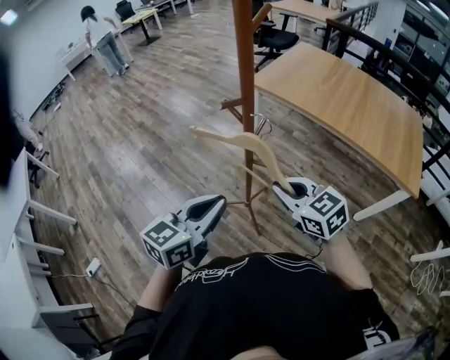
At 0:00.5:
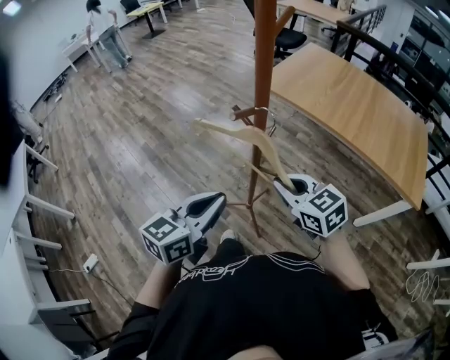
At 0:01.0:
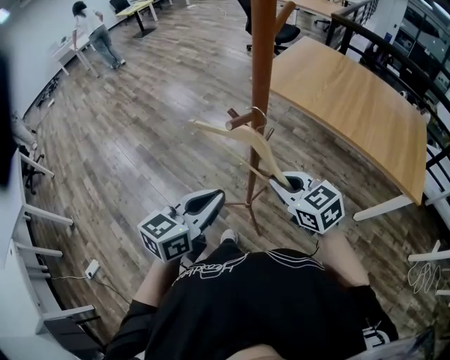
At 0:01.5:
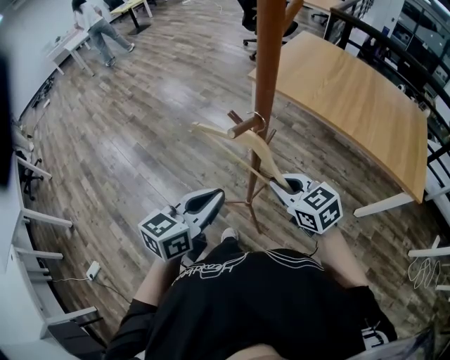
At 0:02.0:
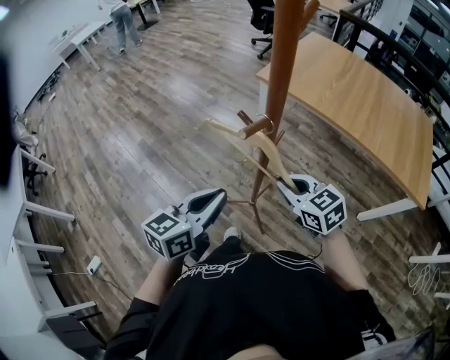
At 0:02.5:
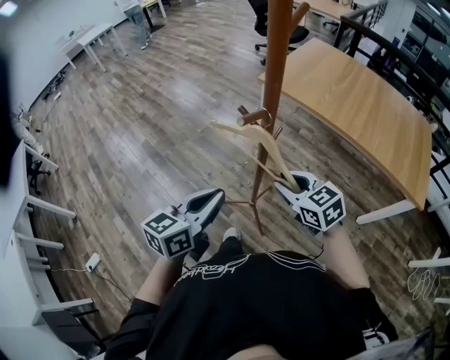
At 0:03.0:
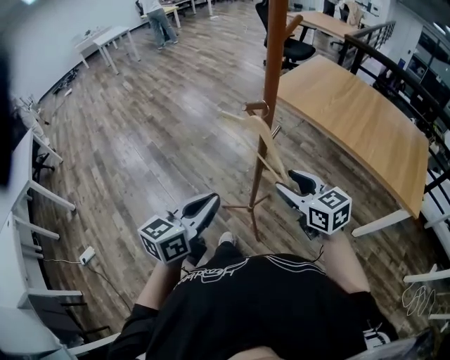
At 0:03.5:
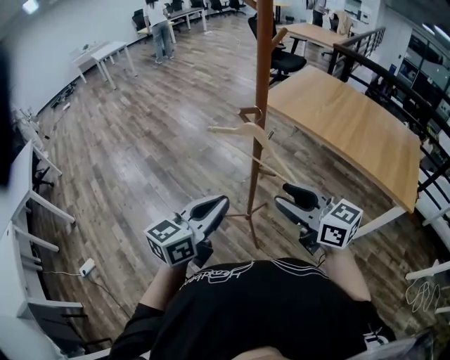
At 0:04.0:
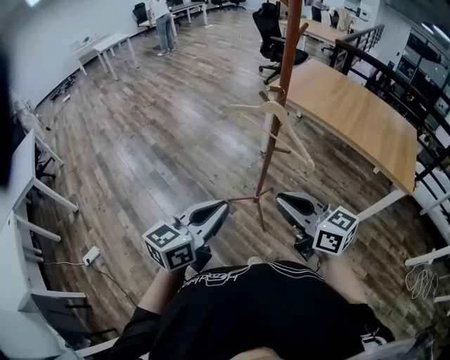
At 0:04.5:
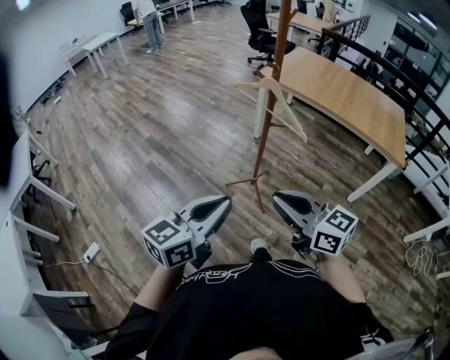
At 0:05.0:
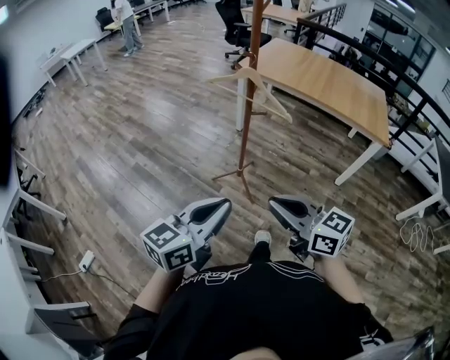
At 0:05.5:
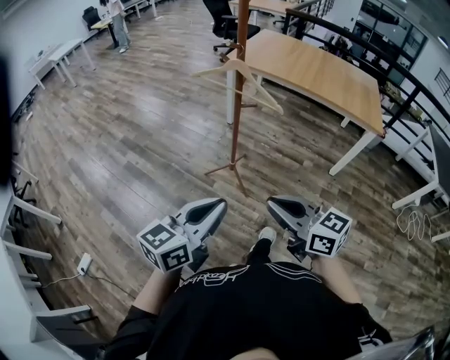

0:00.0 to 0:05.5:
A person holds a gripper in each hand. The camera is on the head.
0:00.0 to 0:02.0: The right gripper travels forward and downward by approximately 10 cm, while the left gripper goes some 10 cm forward.
0:02.0 to 0:03.5: Both grippers move backward and upward, about 15 cm. The right gripper changes its angle by roughly 30 degrees, and opens.
0:03.5 to 0:05.5: The grippers both shift backward by about 25 cm. The right gripper closes its fingers.

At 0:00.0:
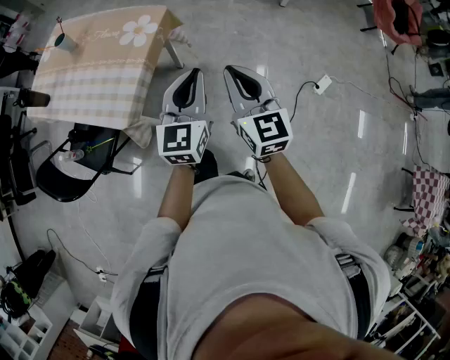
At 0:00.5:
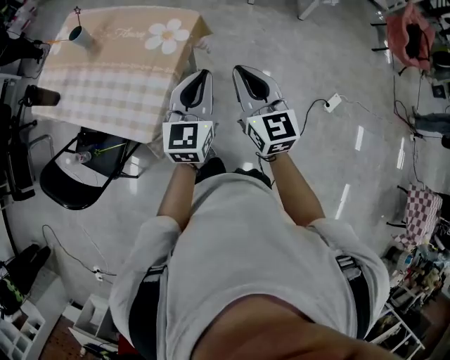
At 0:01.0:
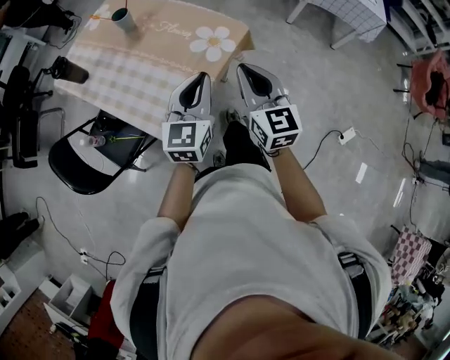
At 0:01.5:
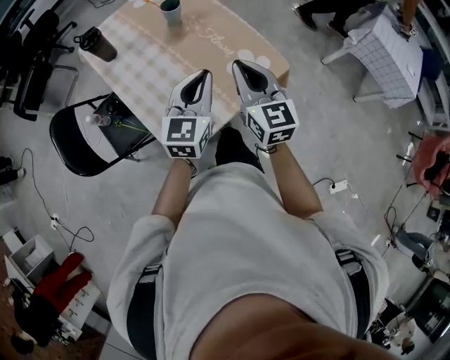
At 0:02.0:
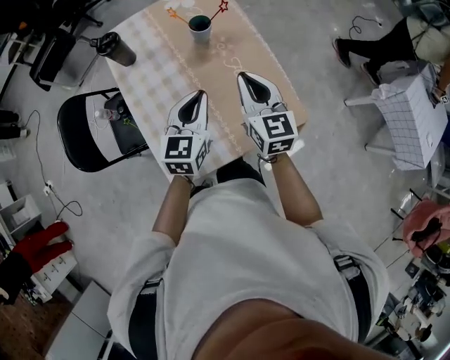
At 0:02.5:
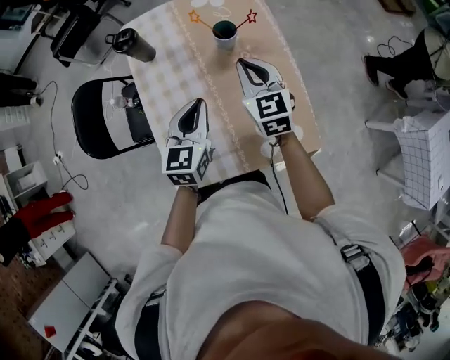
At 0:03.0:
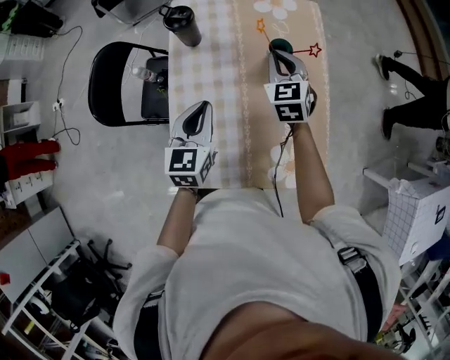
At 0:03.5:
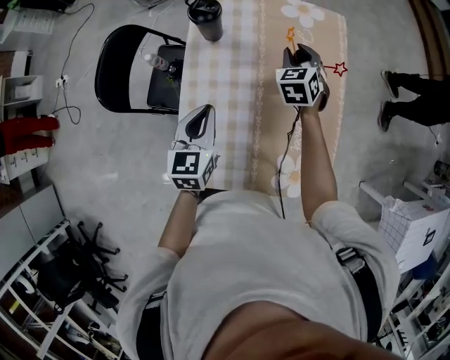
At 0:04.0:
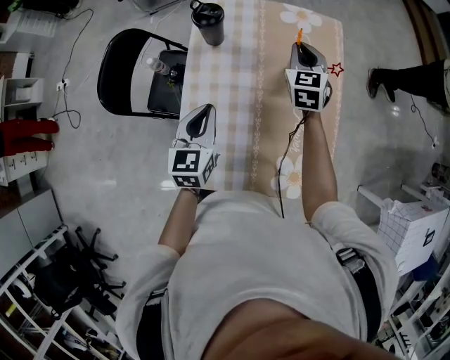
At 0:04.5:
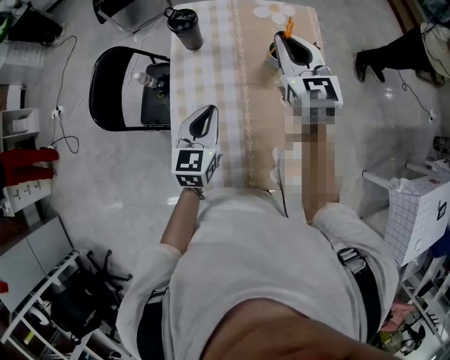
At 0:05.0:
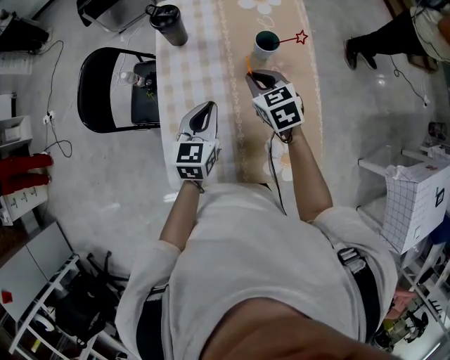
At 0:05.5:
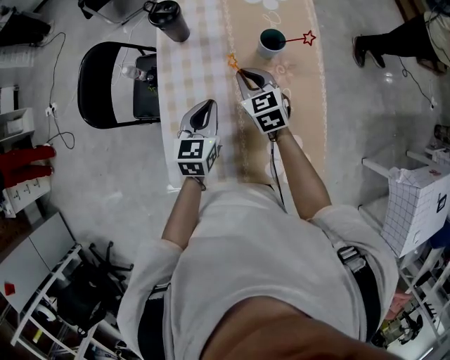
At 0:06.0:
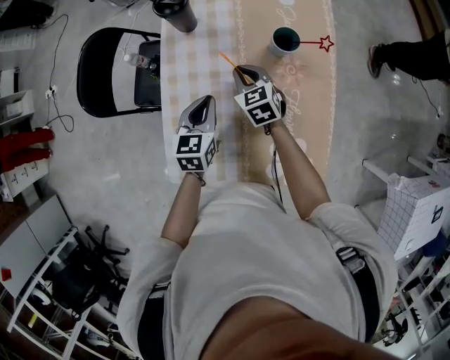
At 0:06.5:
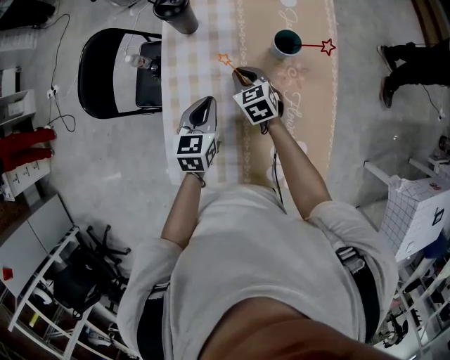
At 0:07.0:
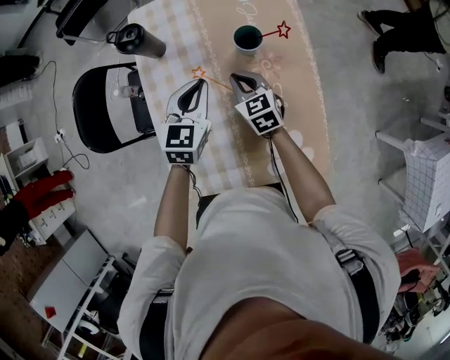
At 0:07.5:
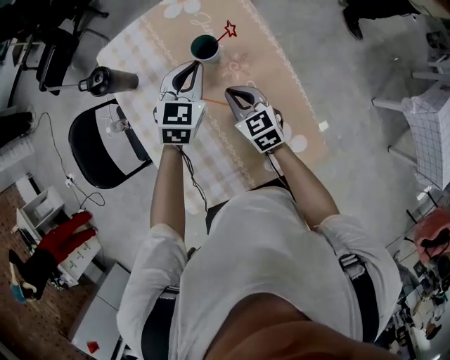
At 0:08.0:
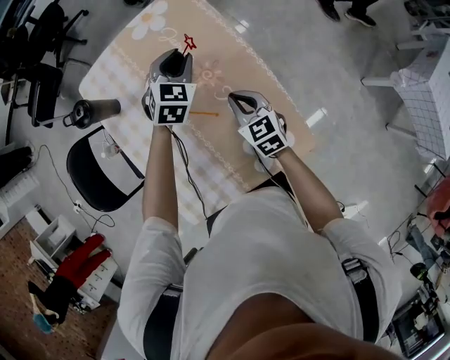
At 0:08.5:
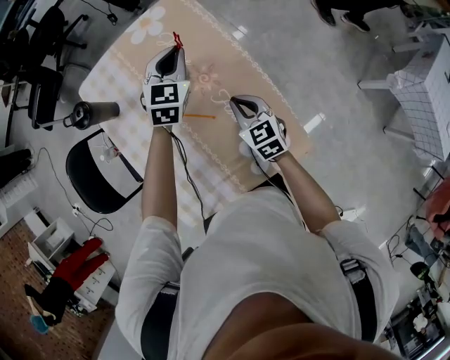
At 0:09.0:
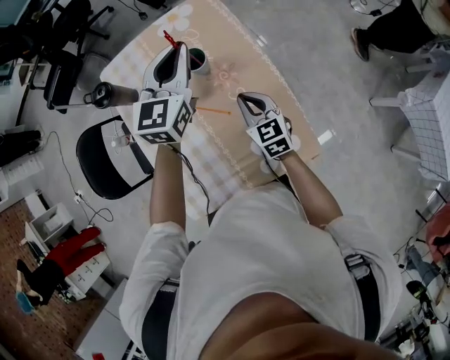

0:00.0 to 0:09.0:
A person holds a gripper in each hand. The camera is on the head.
0:00.0 to 0:02.0: Both grippers are carried roughly 60 cm. The left gripper turns by some 40 degrees. Meanwhile the right gripper turns by approximately 40 degrees.
0:02.0 to 0:04.5: The left gripper goes roughly 10 cm to the left and forward, and changes its angle by roughly 30 degrees, while the right gripper goes roughly 20 cm forward, turns by some 20 degrees, and opens, then closes once more.
0:04.5 to 0:07.0: The left gripper goes some 15 cm forward and to the right, while the right gripper travels downward by some 25 cm, and changes its angle by some 20 degrees.
0:07.0 to 0:09.0: The left gripper goes about 20 cm upward, to the right and forward, swivels approximately 20 degrees, and opens and closes again, while the right gripper travels to the right and backward by about 15 cm.

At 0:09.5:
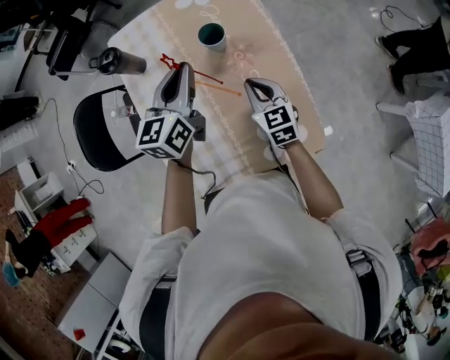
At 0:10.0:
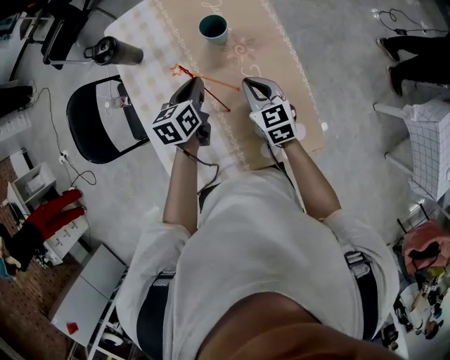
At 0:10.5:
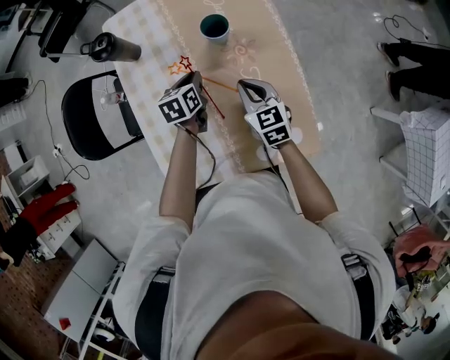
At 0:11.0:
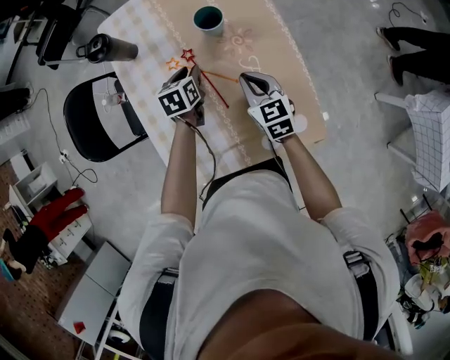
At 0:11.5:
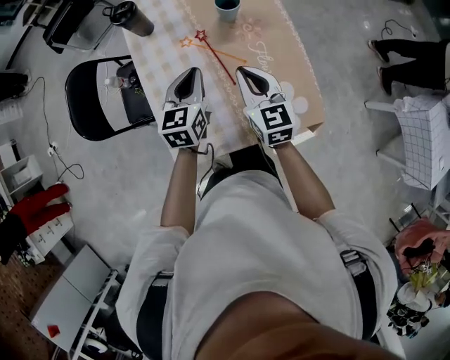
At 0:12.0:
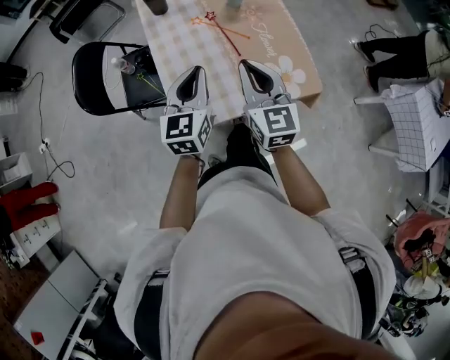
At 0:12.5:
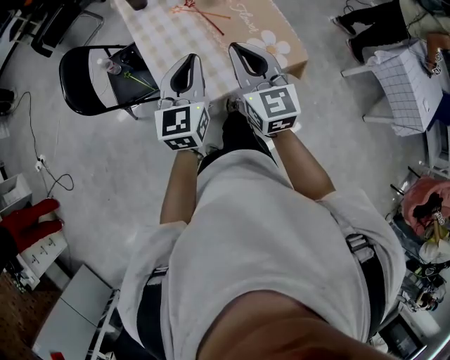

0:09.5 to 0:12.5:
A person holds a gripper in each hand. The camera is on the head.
0:09.5 to 0:11.0: The left gripper travels downward by some 25 cm, tilts its fingers about 40 degrees downward, and opens.
0:11.0 to 0:12.5: The right gripper heads backward, upward and to the left, covering some 40 cm, and swivels some 30 degrees. Meanwhile the left gripper heads backward and upward, covering some 40 cm, tips its fingers upward by some 40 degrees, and closes up.

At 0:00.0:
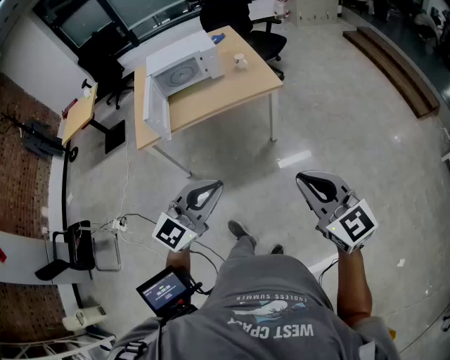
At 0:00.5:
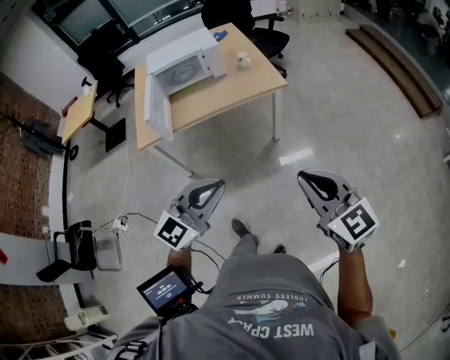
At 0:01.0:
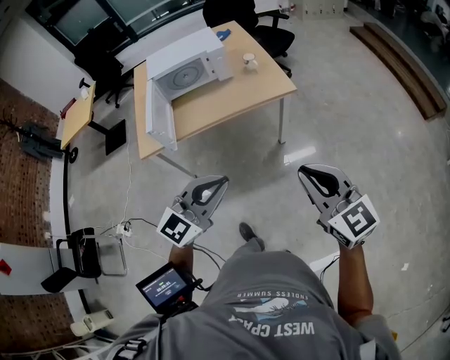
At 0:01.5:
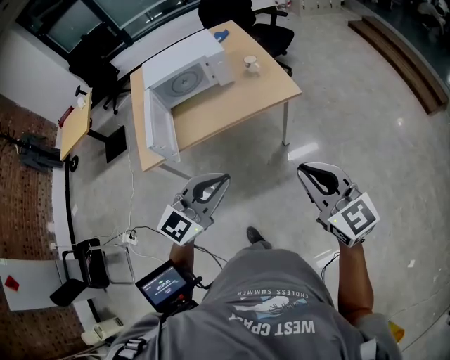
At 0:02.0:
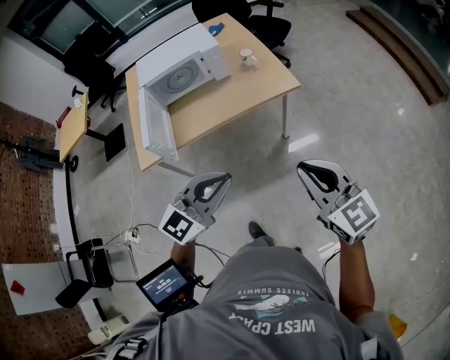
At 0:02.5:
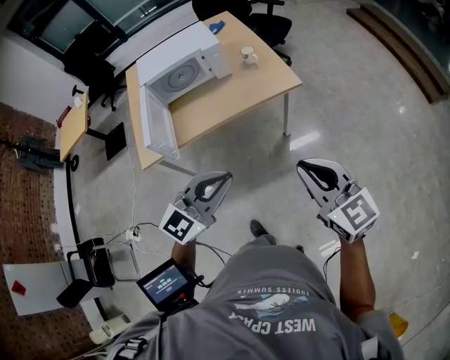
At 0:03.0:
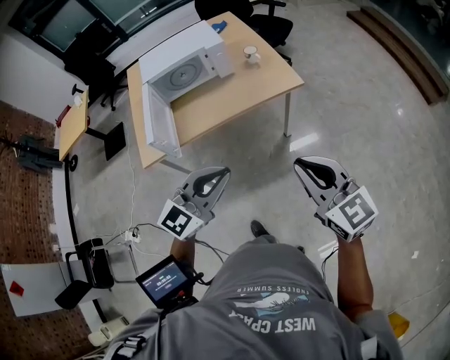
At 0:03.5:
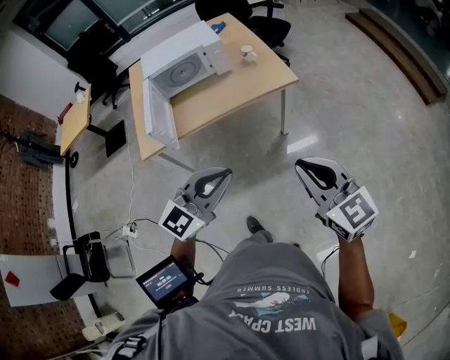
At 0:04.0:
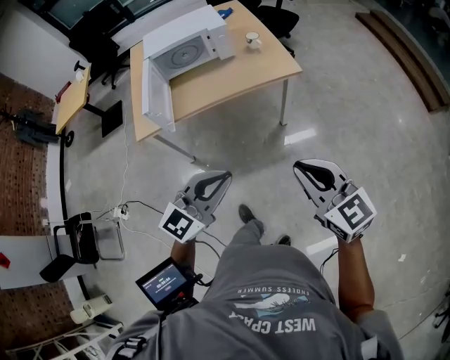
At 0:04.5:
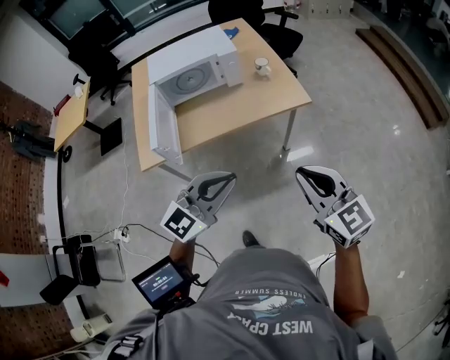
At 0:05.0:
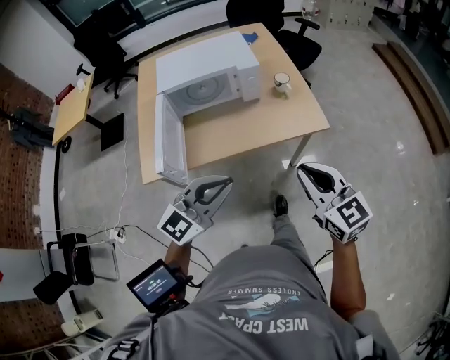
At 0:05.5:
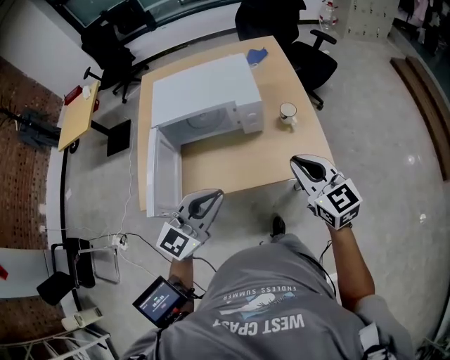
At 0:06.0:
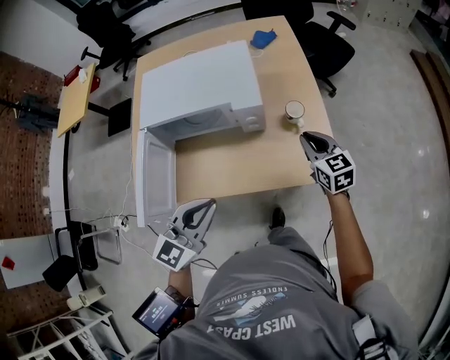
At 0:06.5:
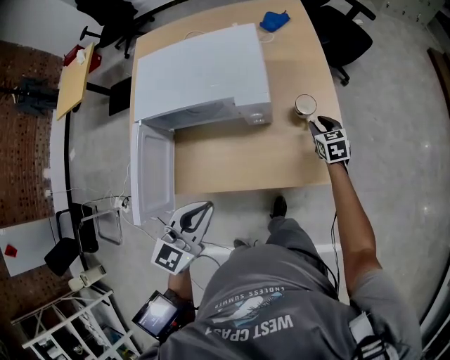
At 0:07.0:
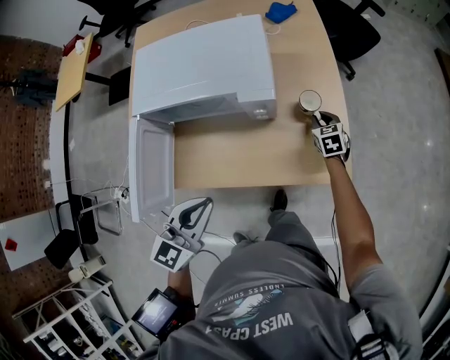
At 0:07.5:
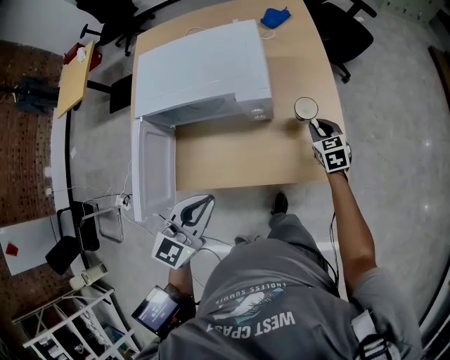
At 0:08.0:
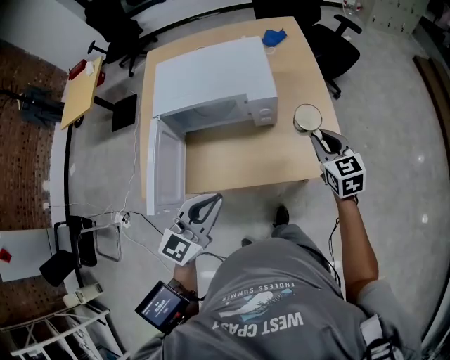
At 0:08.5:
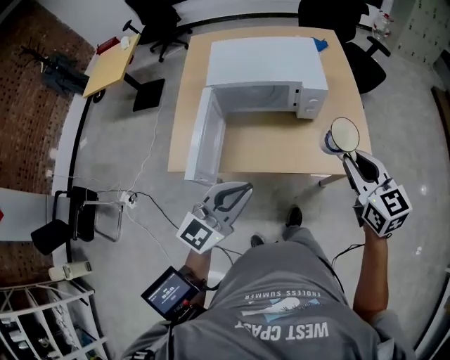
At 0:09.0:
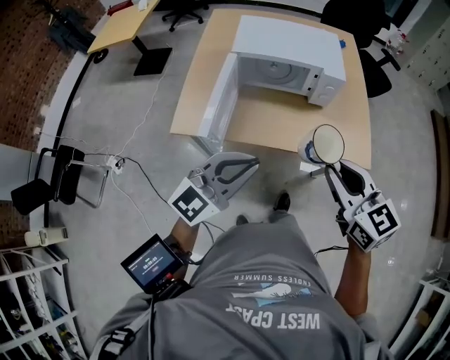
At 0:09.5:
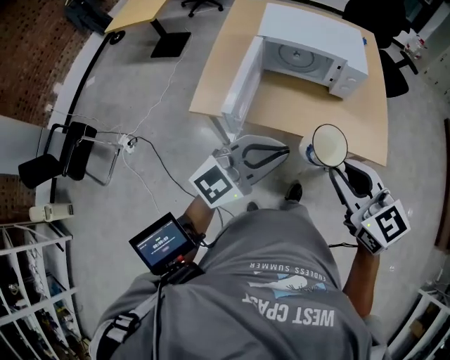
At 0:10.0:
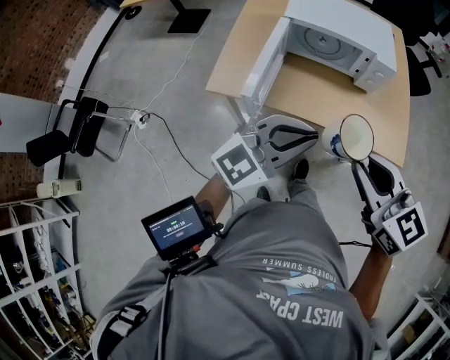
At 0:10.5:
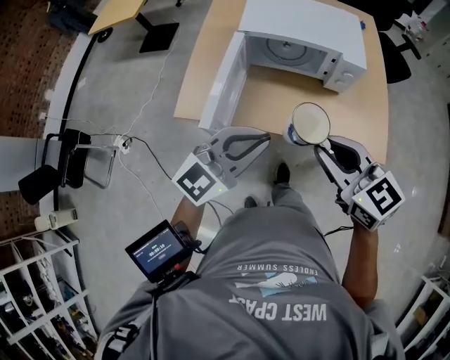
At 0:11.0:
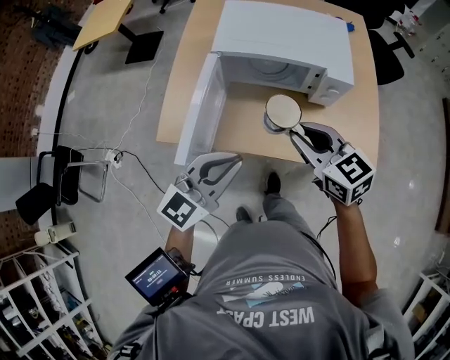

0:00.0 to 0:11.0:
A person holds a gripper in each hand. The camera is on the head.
0:00.0 to 0:02.0: The right gripper travels forward and to the left by about 20 cm. The left gripper travels forward by about 20 cm.
0:02.0 to 0:03.5: Both grippers travel together backward, some 5 cm.
0:03.5 to 0:05.5: The grippers both shift forward by some 40 cm.
0:05.5 to 0:07.5: The right gripper moves downward and forward, approximately 40 cm, and swivels about 30 degrees; the left gripper moves forward and downward, roughly 15 cm, and rotates roughly 20 degrees.
0:07.5 to 0:09.0: The left gripper heads backward, to the left and upward, covering about 25 cm, and changes its angle by approximately 20 degrees. Meanwhile the right gripper shifts roughly 50 cm backward, upward and to the left, and swivels roughly 30 degrees.
0:09.0 to 0:11.0: The right gripper travels forward and downward by roughly 20 cm, while the left gripper goes some 15 cm forward and downward.
